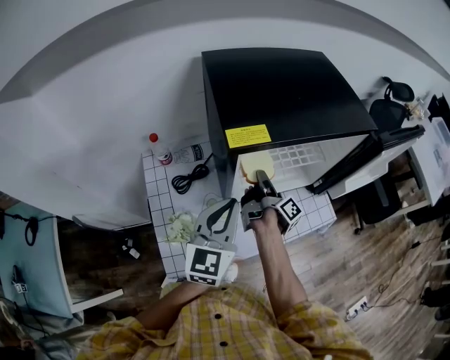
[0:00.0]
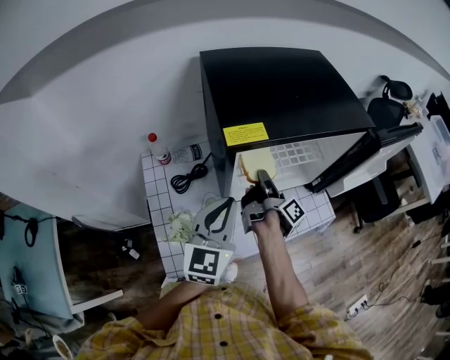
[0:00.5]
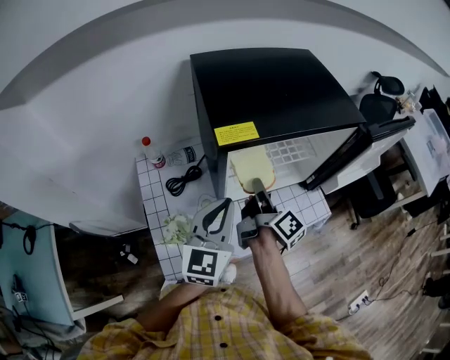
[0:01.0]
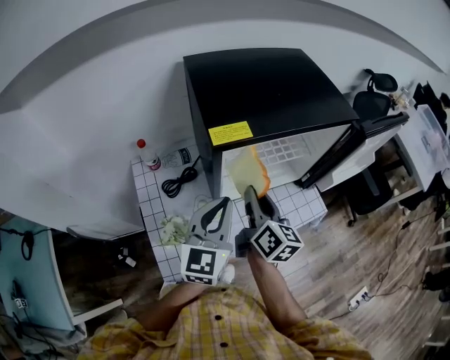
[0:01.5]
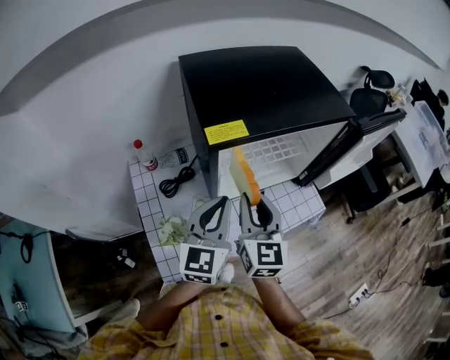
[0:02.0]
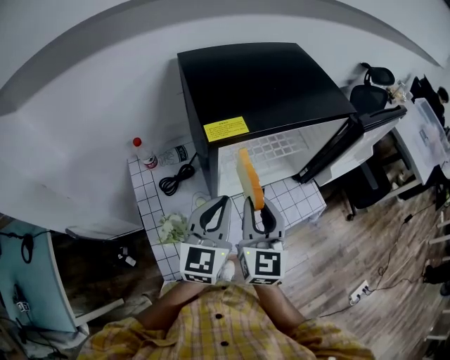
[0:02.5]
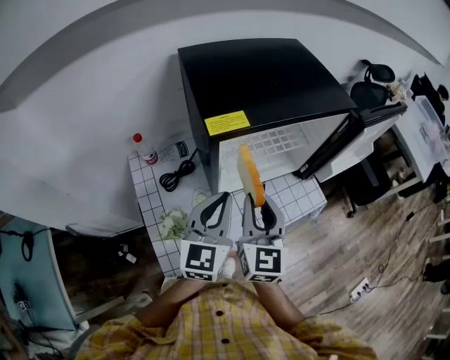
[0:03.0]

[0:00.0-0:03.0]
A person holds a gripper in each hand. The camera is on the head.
0:00.0 to 0:01.5: The right gripper is displaced upward and backward by about 15 cm, and rolls counterclockwise, seen from behind, by approximately 60 degrees.
0:01.5 to 0:03.0: The right gripper travels backward by approximately 5 cm, and turns by roughly 40 degrees.

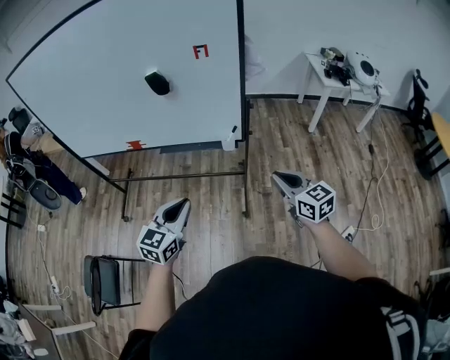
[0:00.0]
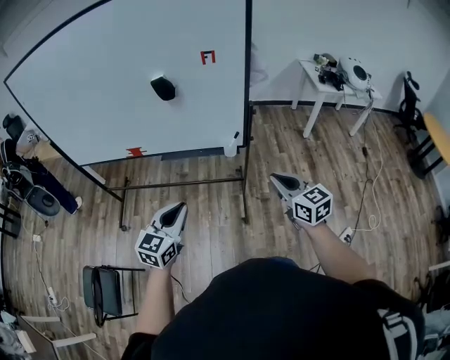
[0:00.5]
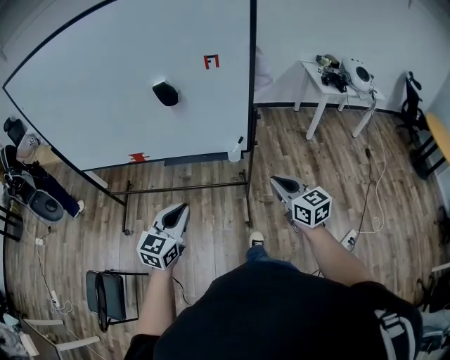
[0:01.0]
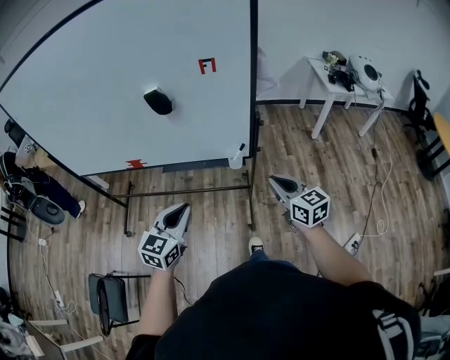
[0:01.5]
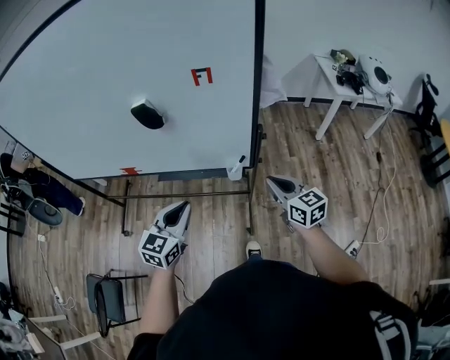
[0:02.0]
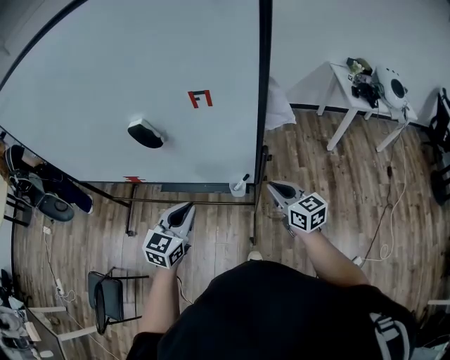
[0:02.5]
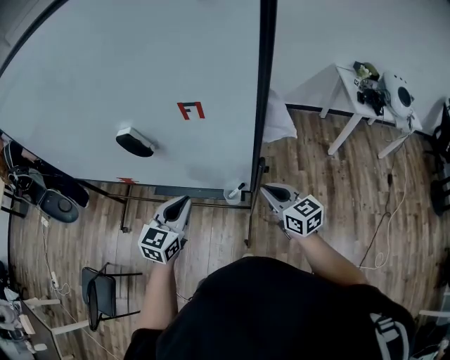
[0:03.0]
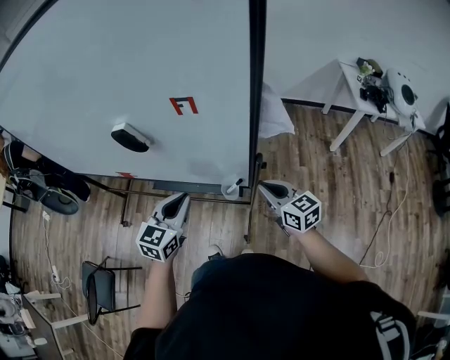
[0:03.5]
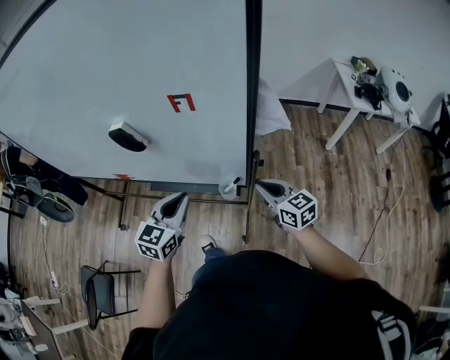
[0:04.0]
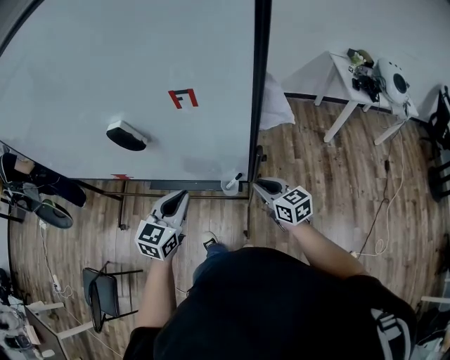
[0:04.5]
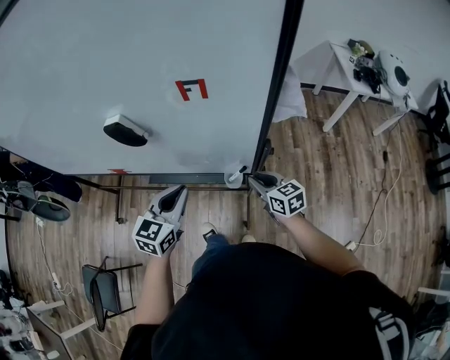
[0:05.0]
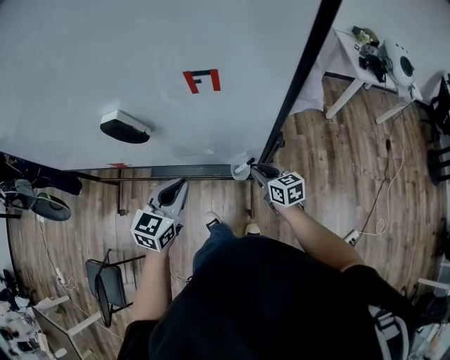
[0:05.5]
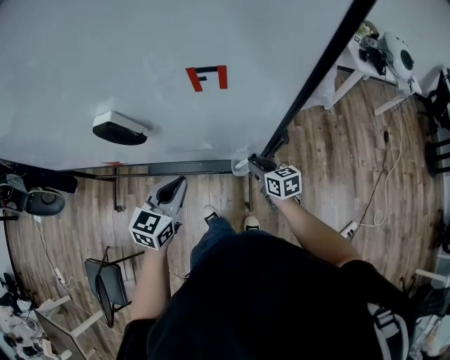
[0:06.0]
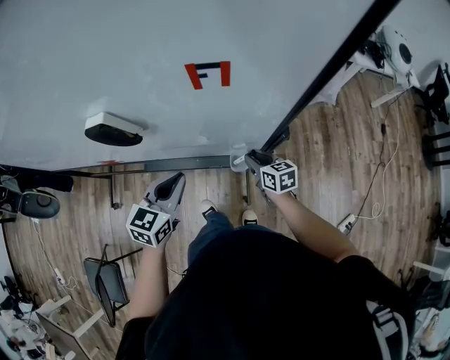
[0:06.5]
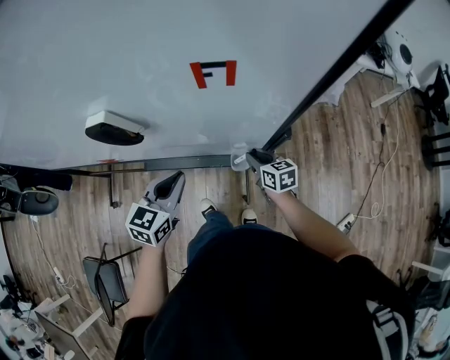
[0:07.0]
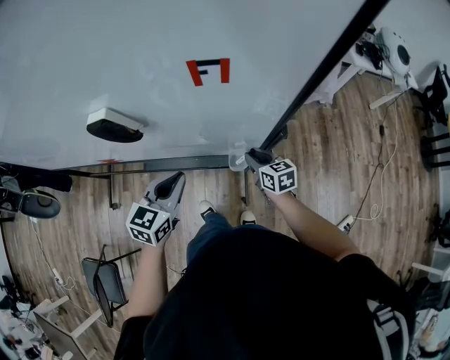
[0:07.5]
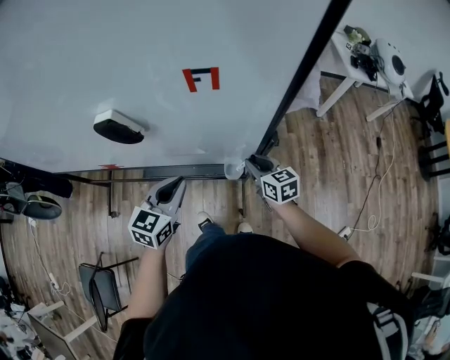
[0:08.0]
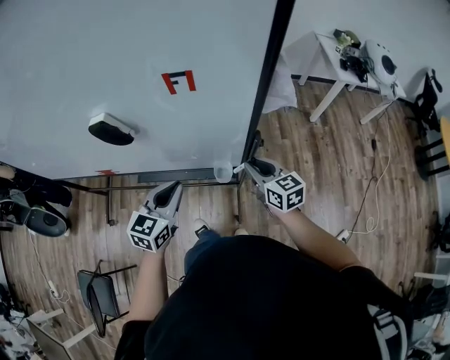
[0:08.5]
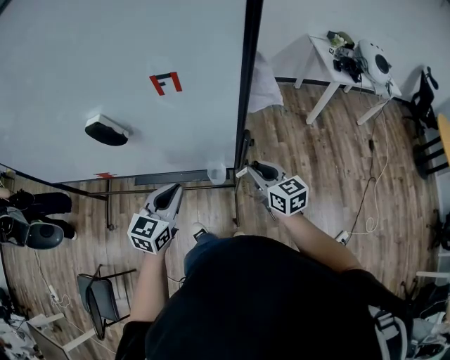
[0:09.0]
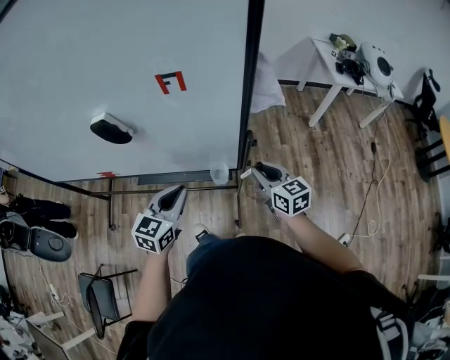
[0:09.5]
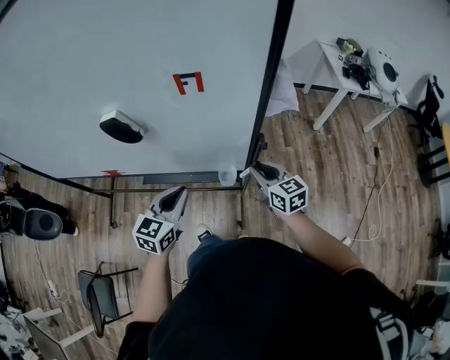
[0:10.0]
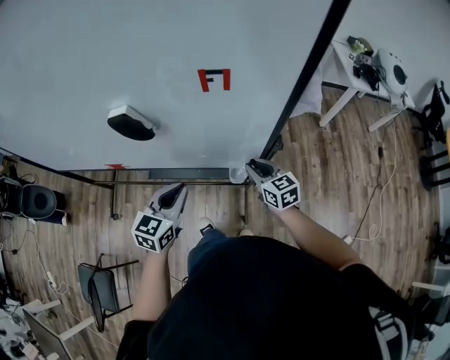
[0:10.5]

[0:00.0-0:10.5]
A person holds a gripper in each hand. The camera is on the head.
0:00.0 to 0:02.0: Both grippers move forward, some 20 cm.
0:02.0 to 0:04.0: The left gripper heads forward and to the right, covering roughly 15 cm; the right gripper travels forward by roughly 10 cm.
0:04.0 to 0:06.5: The right gripper shifts about 20 cm downward and forward, and turns by some 20 degrees, while the left gripper moves downward, to the left and forward, roughly 10 cm.
0:06.5 to 0:08.5: The left gripper moves roughly 5 cm. The right gripper goes some 15 cm upward.
0:08.5 to 0:10.5: The right gripper ends up roughly 5 cm from where it was.

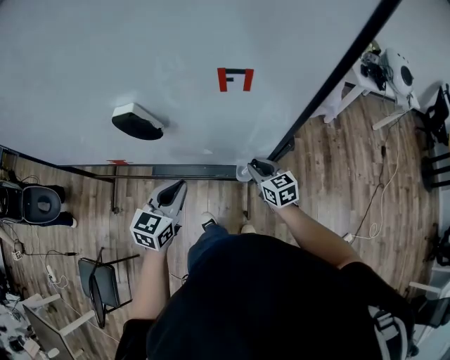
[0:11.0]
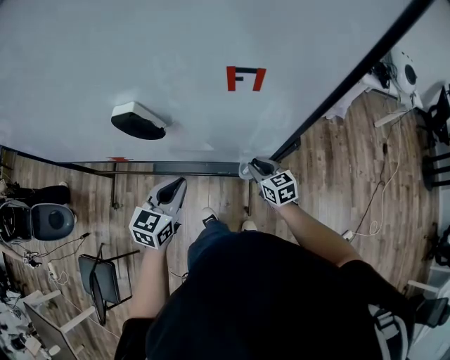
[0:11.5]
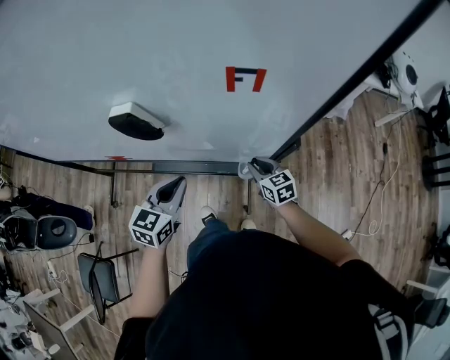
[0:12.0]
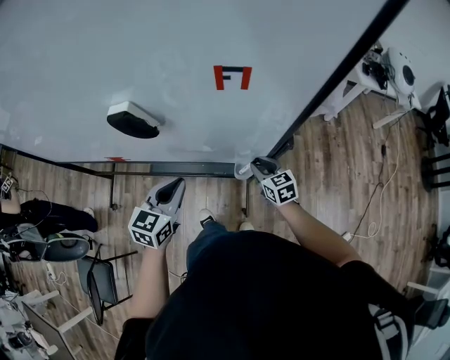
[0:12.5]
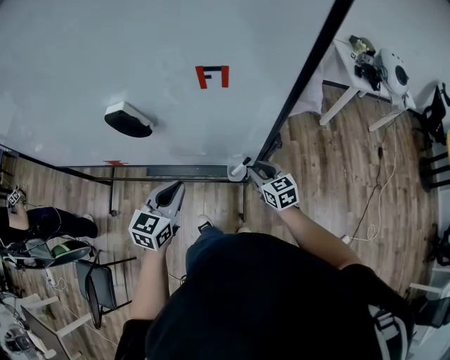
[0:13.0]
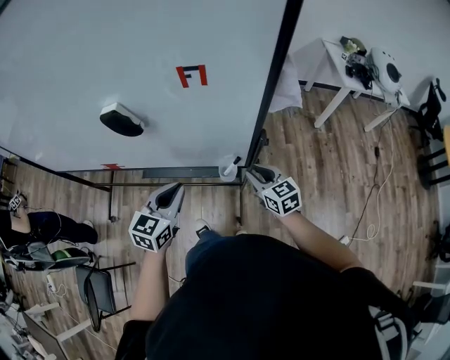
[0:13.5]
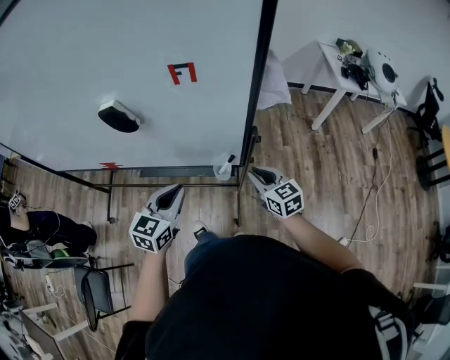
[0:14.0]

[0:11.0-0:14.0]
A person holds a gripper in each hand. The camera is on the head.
0:11.0 to 0:12.5: The grippers move only a little.
0:12.5 to 0:14.0: The right gripper heads upward, backward and to the right, covering roughly 15 cm; the left gripper is displaced to the right and backward by roughly 10 cm.

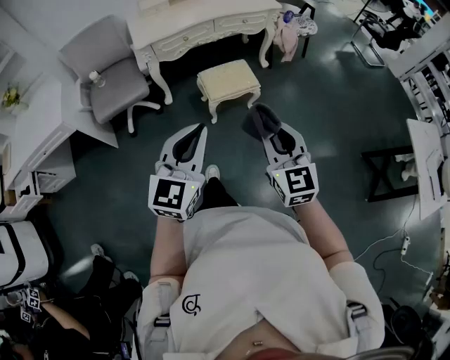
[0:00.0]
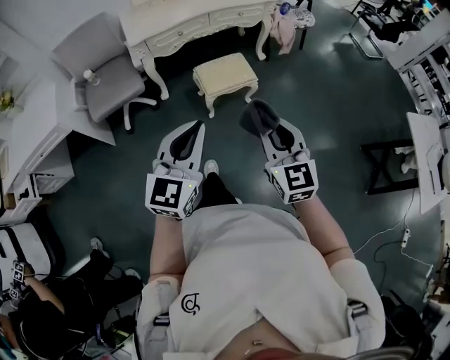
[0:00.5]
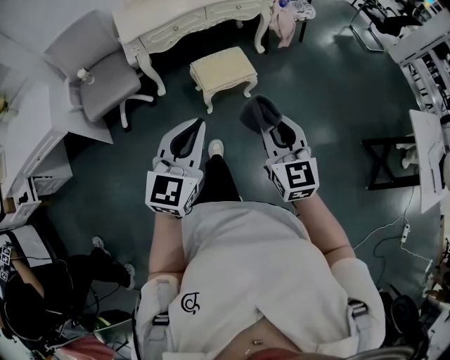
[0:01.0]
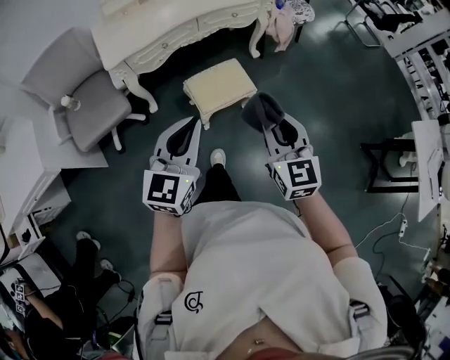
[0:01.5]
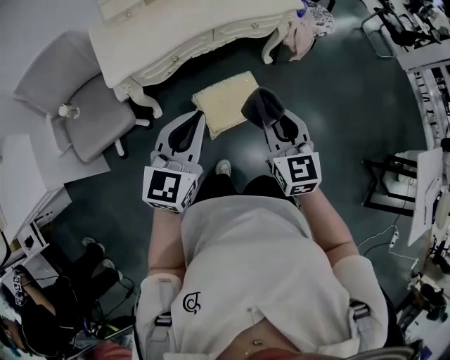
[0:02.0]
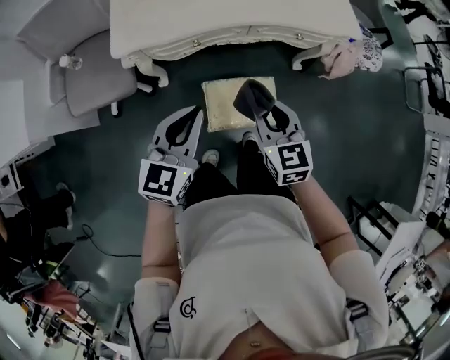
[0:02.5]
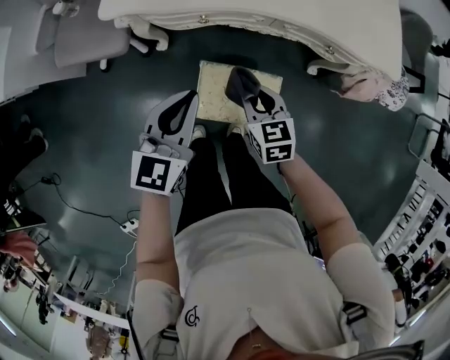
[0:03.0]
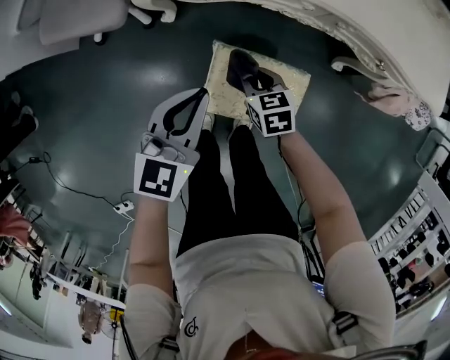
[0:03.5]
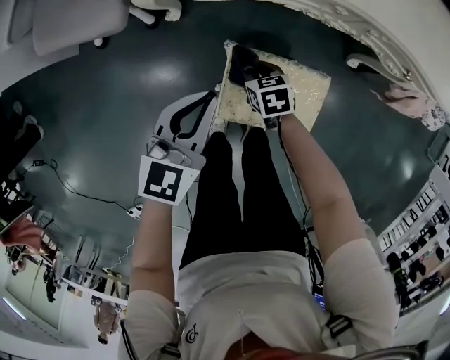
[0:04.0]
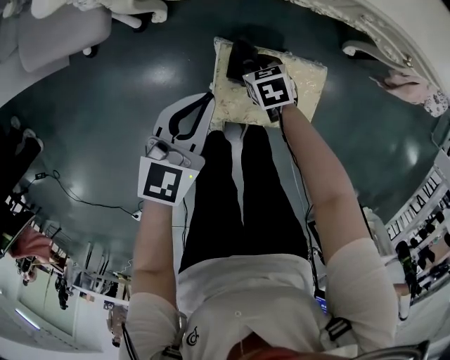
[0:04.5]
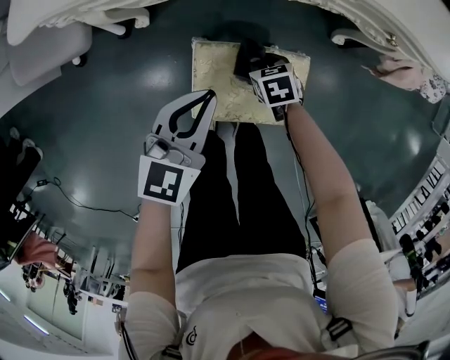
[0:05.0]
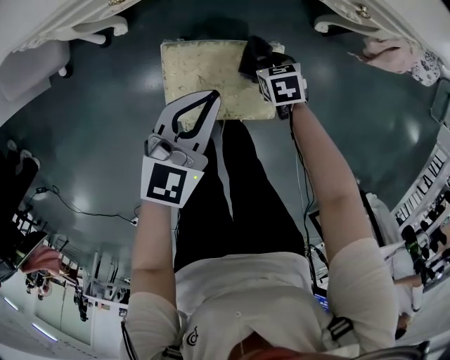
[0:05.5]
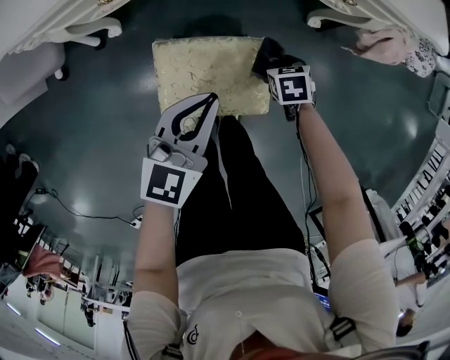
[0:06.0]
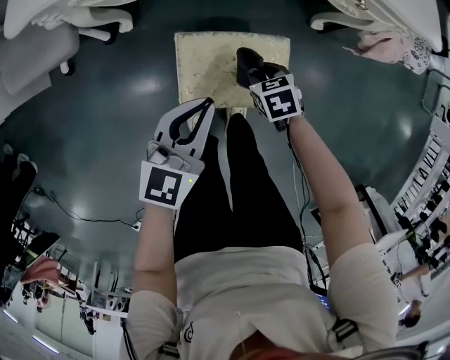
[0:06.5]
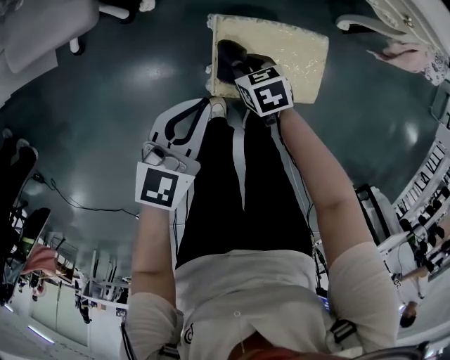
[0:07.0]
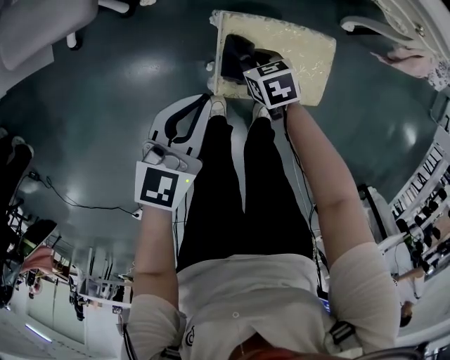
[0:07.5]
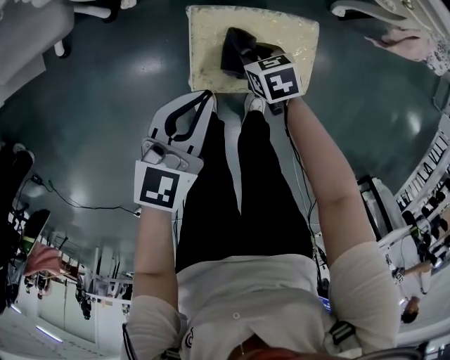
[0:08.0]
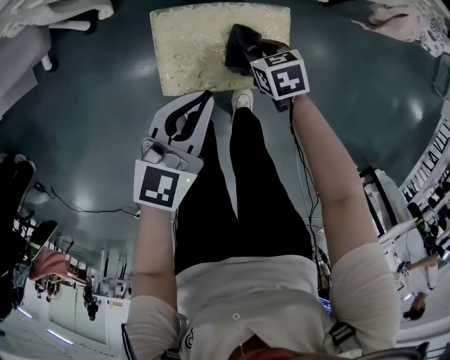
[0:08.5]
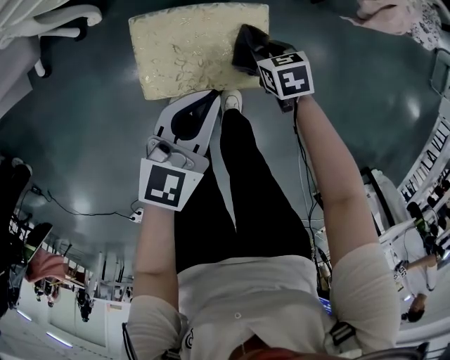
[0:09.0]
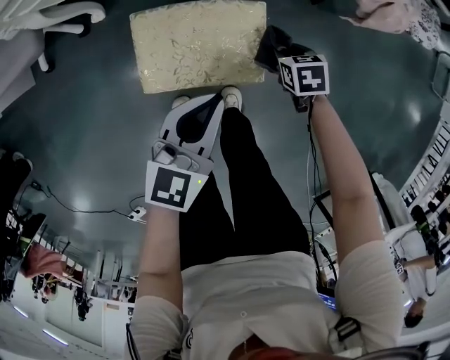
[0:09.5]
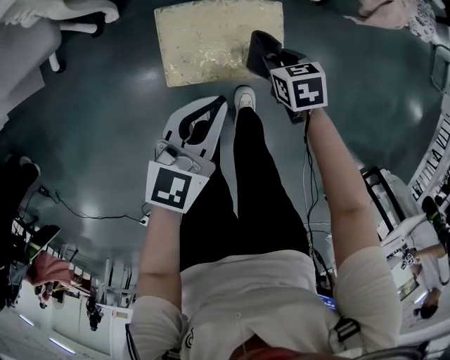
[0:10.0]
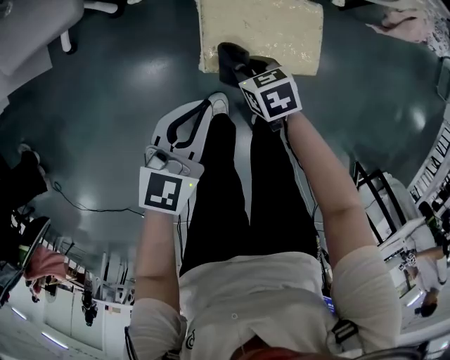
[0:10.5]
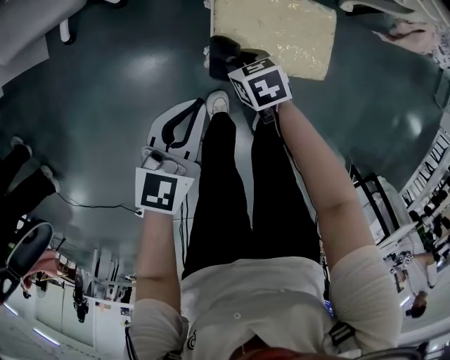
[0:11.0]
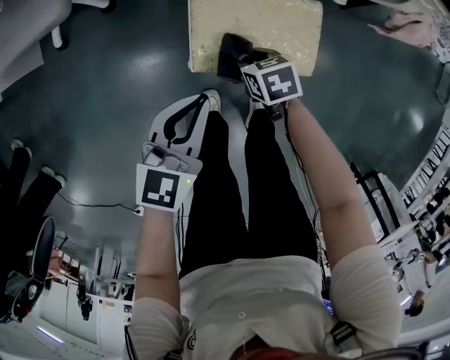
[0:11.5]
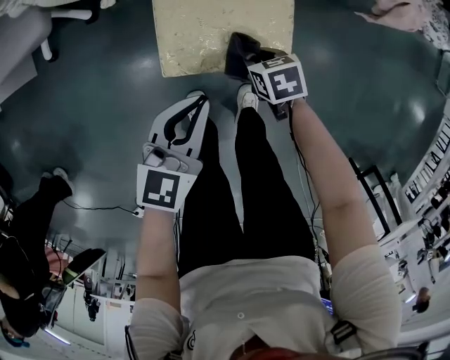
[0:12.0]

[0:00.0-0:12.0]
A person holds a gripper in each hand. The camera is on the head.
0:00.0 to 0:02.0: Both grippers are carried forward, some 40 cm.
0:02.0 to 0:04.0: The left gripper heads downward, covering roughly 35 cm, and changes its angle by about 30 degrees. Meanwhile the right gripper shifts roughly 50 cm downward, and angles its fingers downward, by roughly 40 degrees.
0:04.0 to 0:06.0: The right gripper changes place by about 30 cm, and rotates approximately 20 degrees, while the left gripper moves approximately 20 cm.
0:06.0 to 0:08.0: The right gripper ends up approximately 20 cm from where it was. The left gripper shifts by about 15 cm.
0:08.0 to 0:10.0: The right gripper travels to the right and upward by about 15 cm. The left gripper moves to the right and backward, approximately 10 cm.
0:10.0 to 0:12.0: Both grippers move downward, roughly 5 cm. The right gripper goes to the left and returns, roughly 25 cm each way; the left gripper goes to the left and returns, some 15 cm each way.
